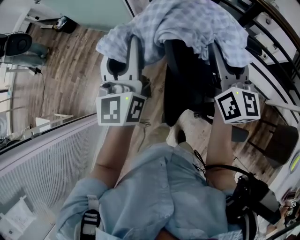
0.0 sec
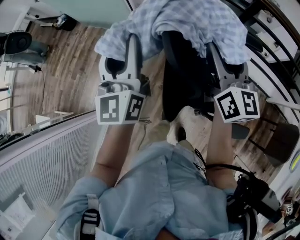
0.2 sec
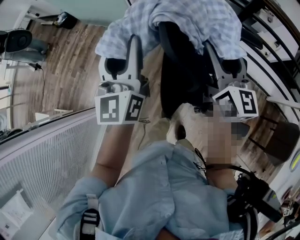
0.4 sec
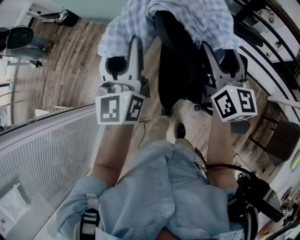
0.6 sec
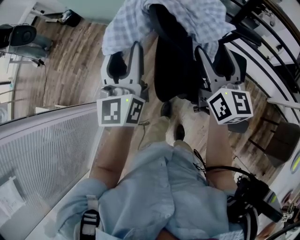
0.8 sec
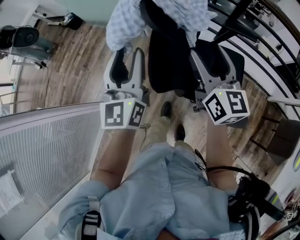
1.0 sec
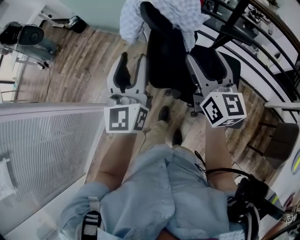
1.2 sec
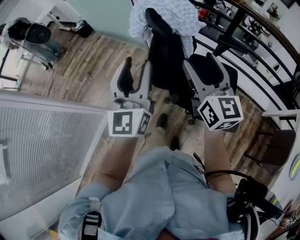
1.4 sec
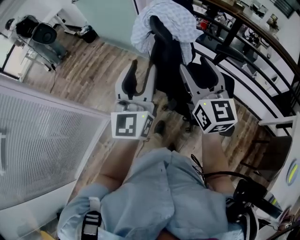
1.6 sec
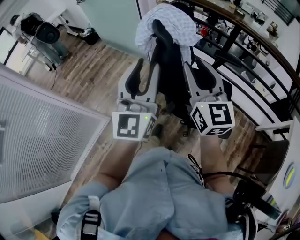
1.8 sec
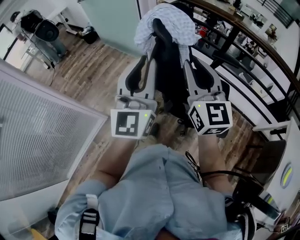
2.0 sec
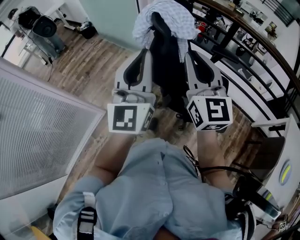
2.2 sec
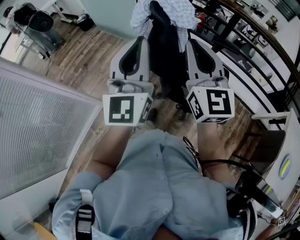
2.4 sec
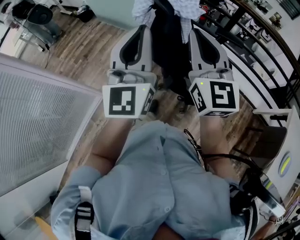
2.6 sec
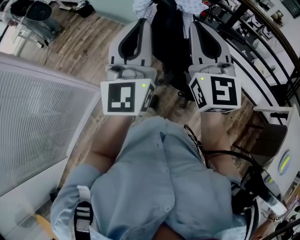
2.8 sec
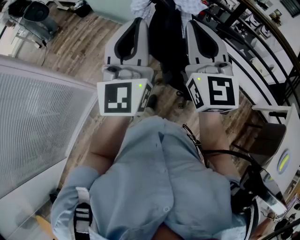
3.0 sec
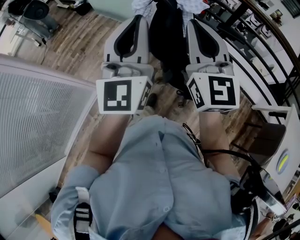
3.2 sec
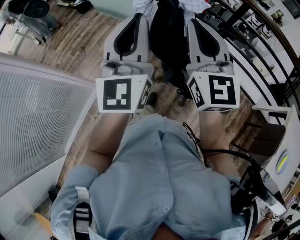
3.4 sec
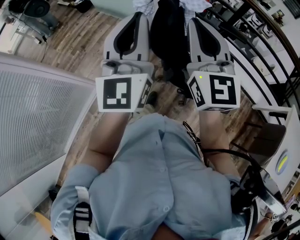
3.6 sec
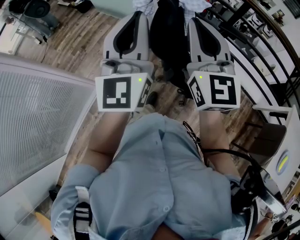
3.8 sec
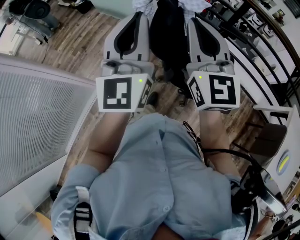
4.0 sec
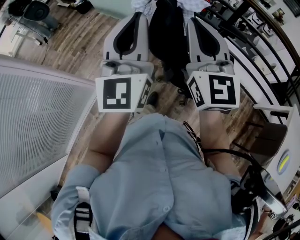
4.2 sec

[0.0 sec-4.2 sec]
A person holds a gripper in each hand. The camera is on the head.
0.0 sec to 1.4 sec: Both grippers move backward, approximately 20 cm.
1.4 sec to 2.8 sec: Both grippers move upward and backward, roughly 10 cm. The right gripper closes its fingers, while the left gripper closes.
2.8 sec to 4.2 sec: The grippers move only a little.

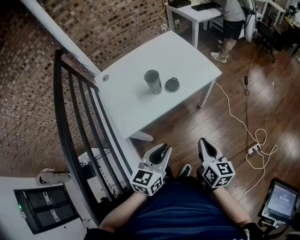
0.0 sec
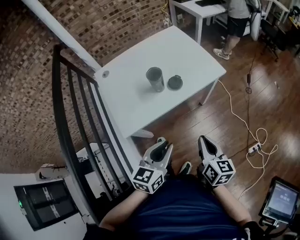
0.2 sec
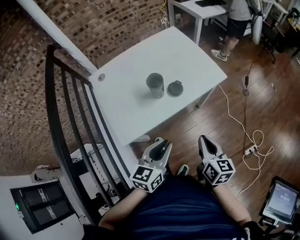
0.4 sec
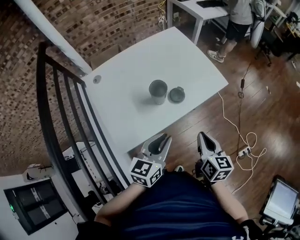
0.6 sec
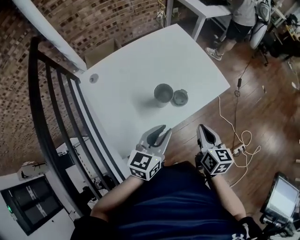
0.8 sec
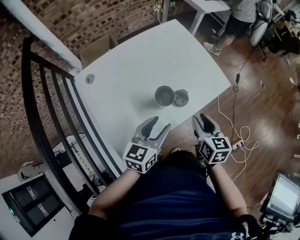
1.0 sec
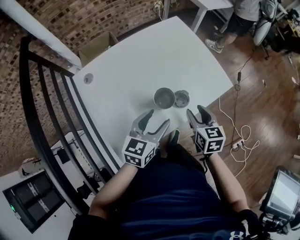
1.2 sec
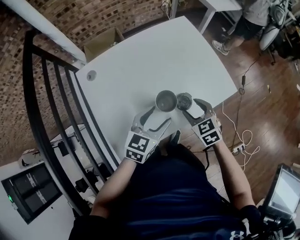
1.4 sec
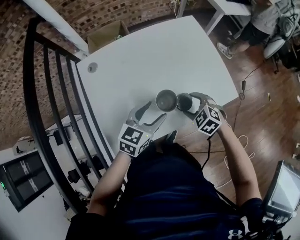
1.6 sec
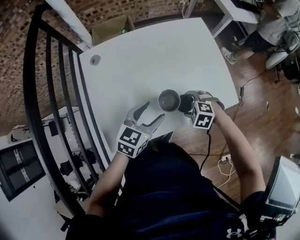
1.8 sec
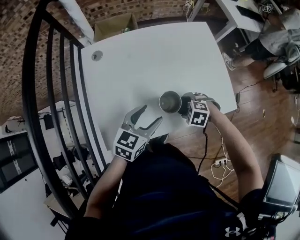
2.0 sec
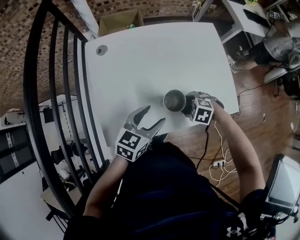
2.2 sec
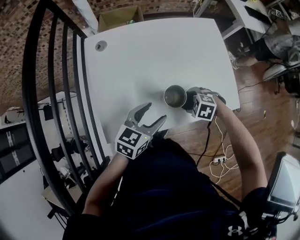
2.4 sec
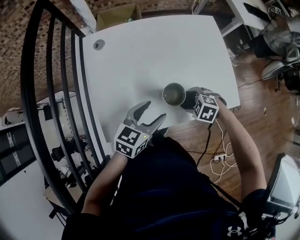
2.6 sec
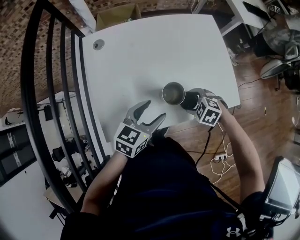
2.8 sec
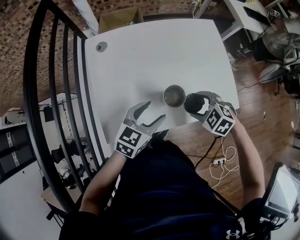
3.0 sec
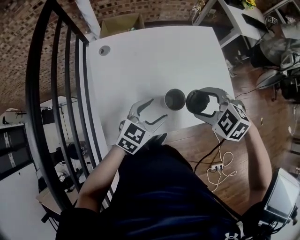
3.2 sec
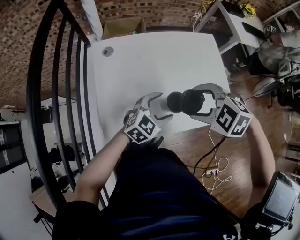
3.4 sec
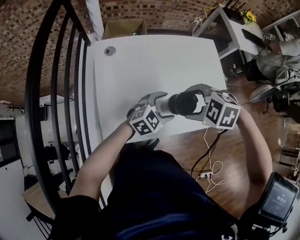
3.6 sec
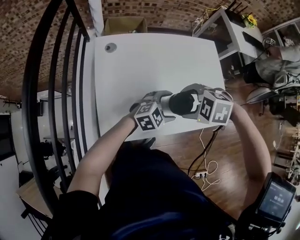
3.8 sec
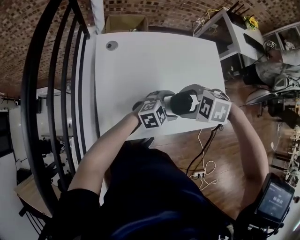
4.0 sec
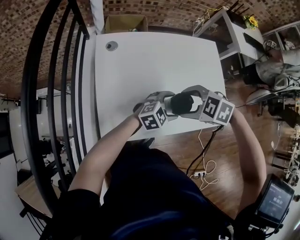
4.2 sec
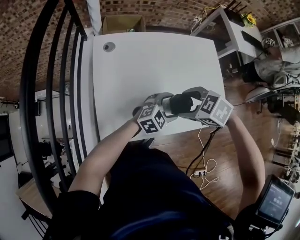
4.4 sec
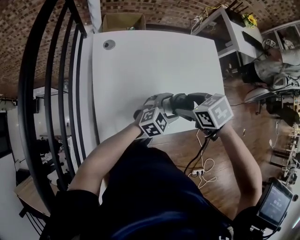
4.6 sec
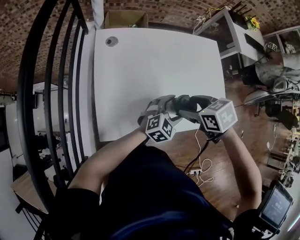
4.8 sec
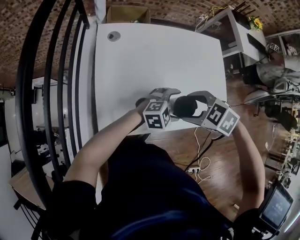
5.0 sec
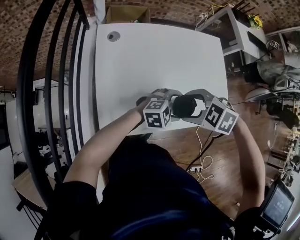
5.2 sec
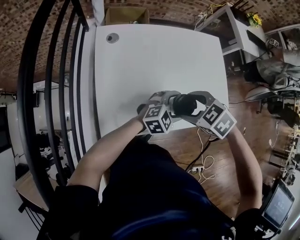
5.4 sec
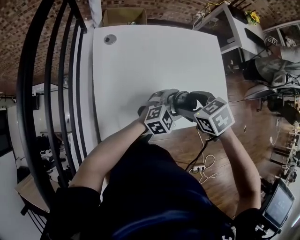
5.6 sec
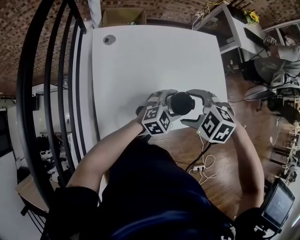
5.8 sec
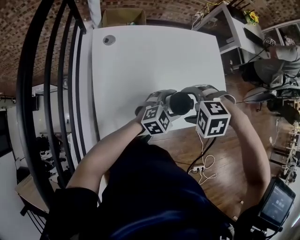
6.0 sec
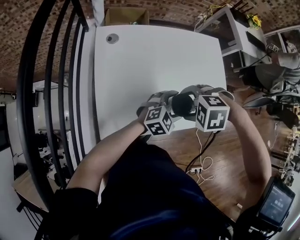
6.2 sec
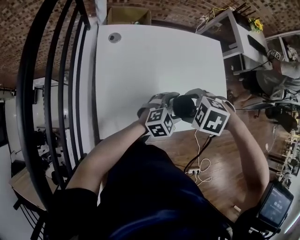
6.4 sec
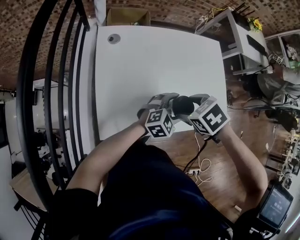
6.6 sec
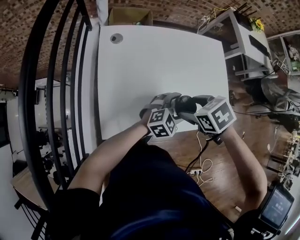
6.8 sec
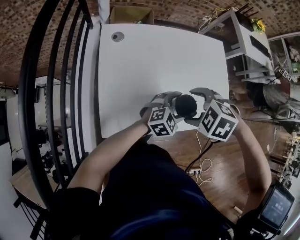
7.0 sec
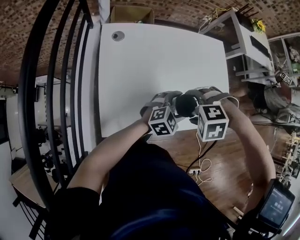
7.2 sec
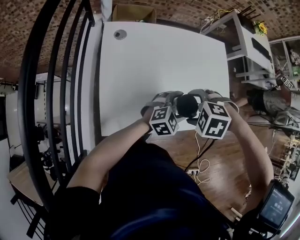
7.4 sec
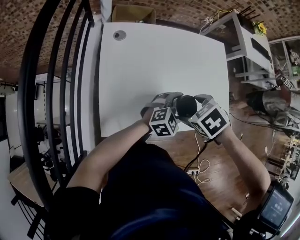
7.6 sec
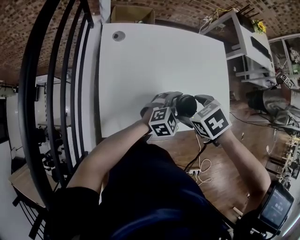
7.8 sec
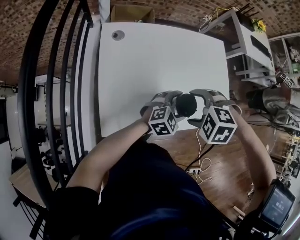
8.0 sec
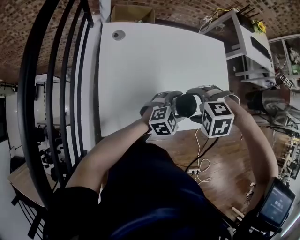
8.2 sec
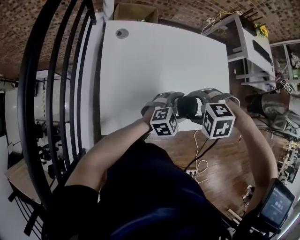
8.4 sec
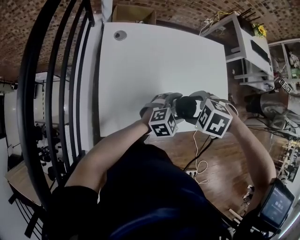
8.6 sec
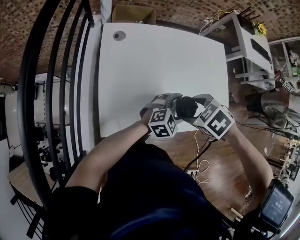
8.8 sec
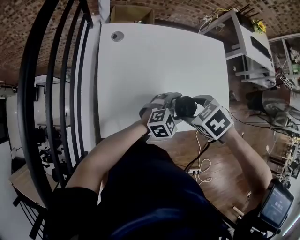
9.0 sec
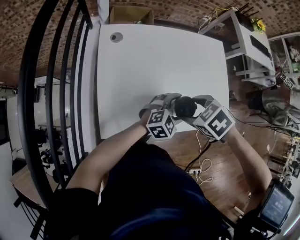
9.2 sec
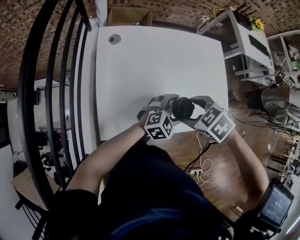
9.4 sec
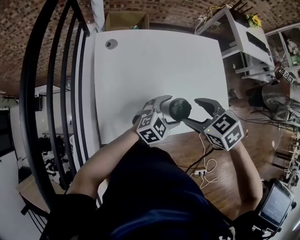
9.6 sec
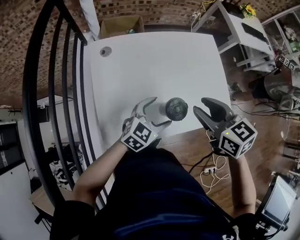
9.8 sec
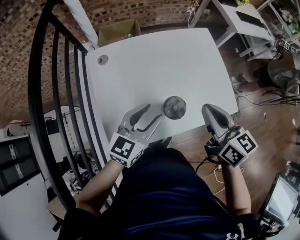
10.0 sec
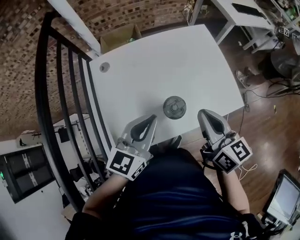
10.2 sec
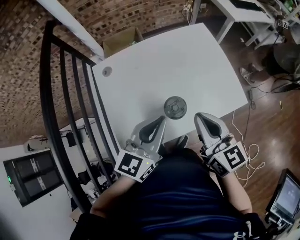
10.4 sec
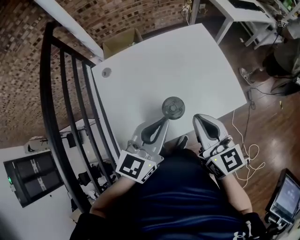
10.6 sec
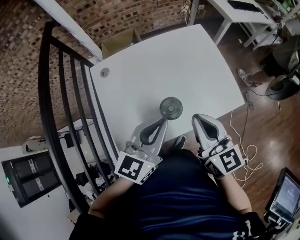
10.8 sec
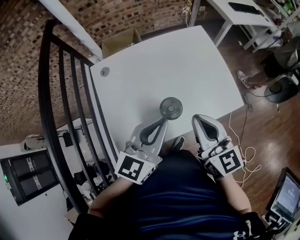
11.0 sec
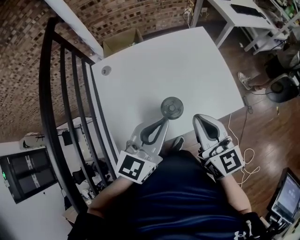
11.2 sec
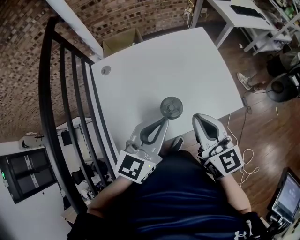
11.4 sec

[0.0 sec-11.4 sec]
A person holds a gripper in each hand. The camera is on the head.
0.0 sec to 1.4 sec: The grippers both shift forward and to the left by some 35 cm. The left gripper opens its fingers; the right gripper twists roughly 50 degrees counterclockwise, seen from behind, and opens its fingers.
1.4 sec to 2.8 sec: The right gripper moves downward, some 10 cm, and swivels roughly 60 degrees.
2.8 sec to 4.2 sec: The right gripper travels upward by roughly 15 cm. Meanwhile the left gripper moves about 10 cm, and swivels roughly 40 degrees.
4.2 sec to 5.6 sec: The right gripper swivels some 40 degrees.
5.6 sec to 7.2 sec: The right gripper rotates around the line of its fingers by approximately 60 degrees, counterclockwise from behind.
7.2 sec to 8.6 sec: The right gripper rotates some 20 degrees.
8.6 sec to 10.0 sec: The right gripper goes about 10 cm upward, tilts its fingers some 70 degrees upward, and closes up, while the left gripper ends up approximately 15 cm from where it was, turns by some 30 degrees, and closes its fingers.
10.0 sec to 11.4 sec: The left gripper goes about 5 cm upward, and closes.

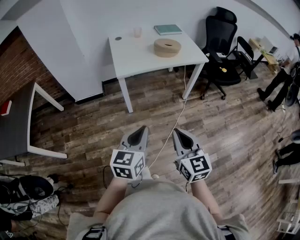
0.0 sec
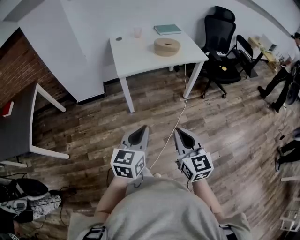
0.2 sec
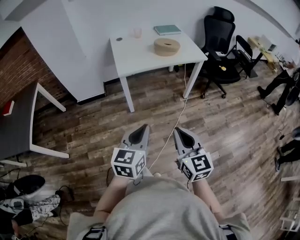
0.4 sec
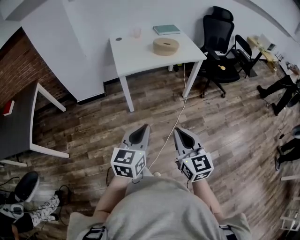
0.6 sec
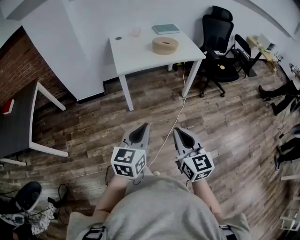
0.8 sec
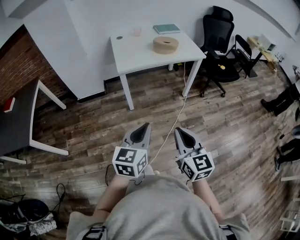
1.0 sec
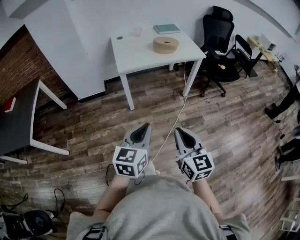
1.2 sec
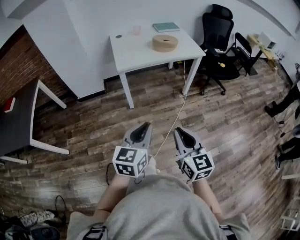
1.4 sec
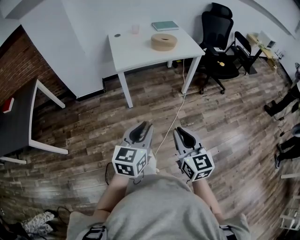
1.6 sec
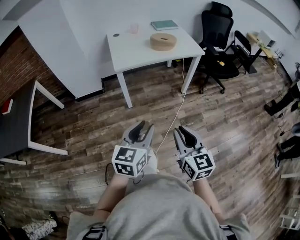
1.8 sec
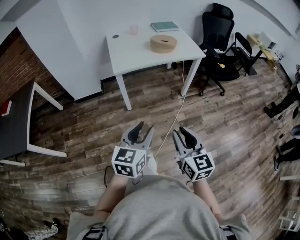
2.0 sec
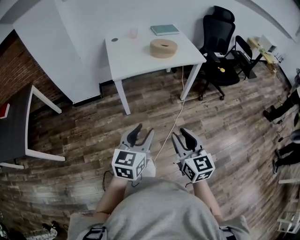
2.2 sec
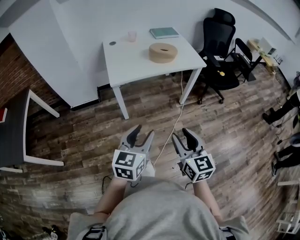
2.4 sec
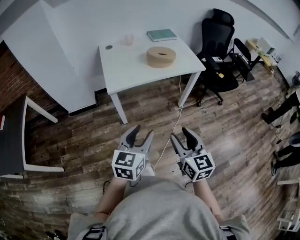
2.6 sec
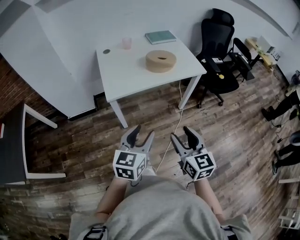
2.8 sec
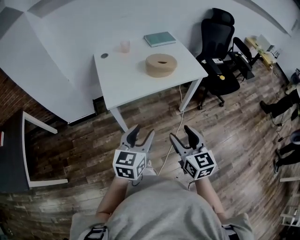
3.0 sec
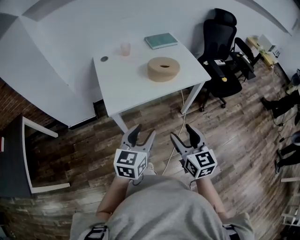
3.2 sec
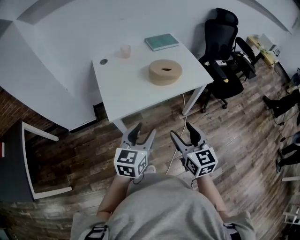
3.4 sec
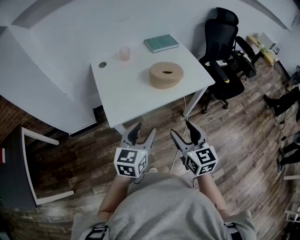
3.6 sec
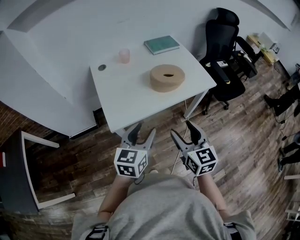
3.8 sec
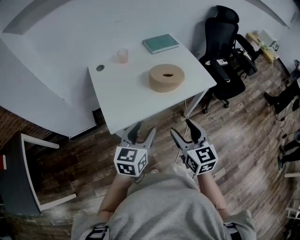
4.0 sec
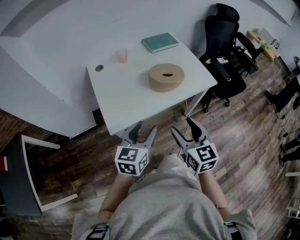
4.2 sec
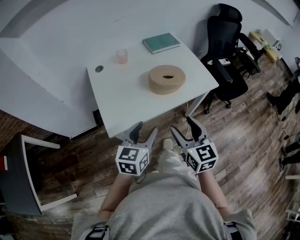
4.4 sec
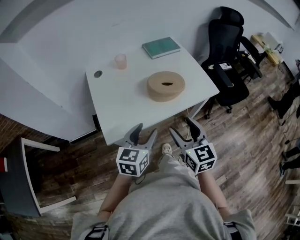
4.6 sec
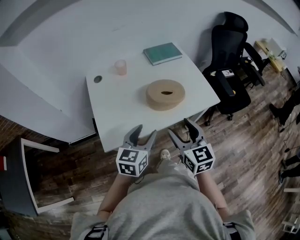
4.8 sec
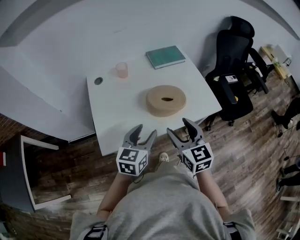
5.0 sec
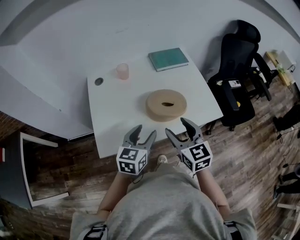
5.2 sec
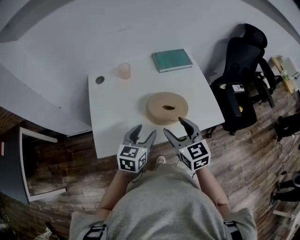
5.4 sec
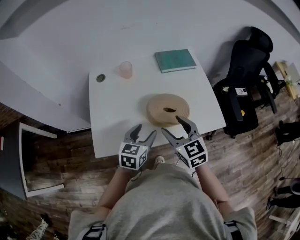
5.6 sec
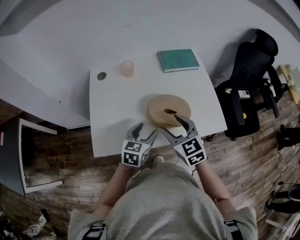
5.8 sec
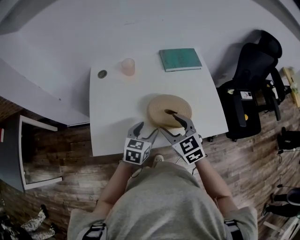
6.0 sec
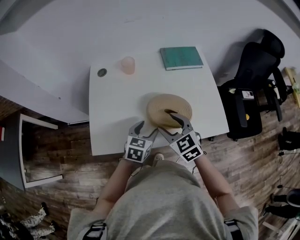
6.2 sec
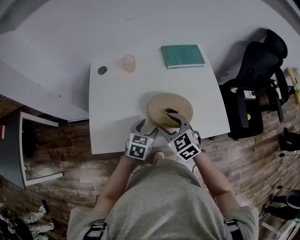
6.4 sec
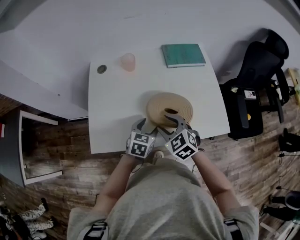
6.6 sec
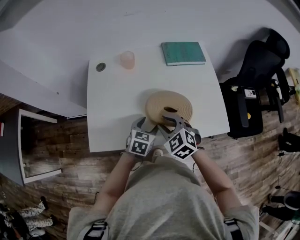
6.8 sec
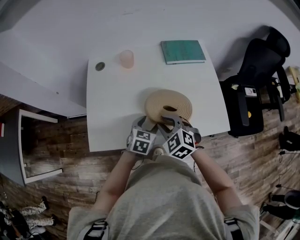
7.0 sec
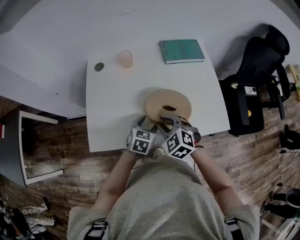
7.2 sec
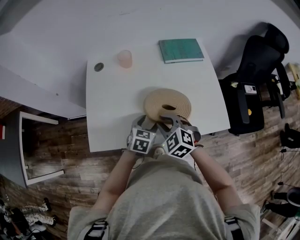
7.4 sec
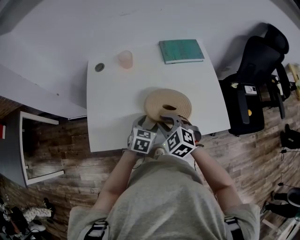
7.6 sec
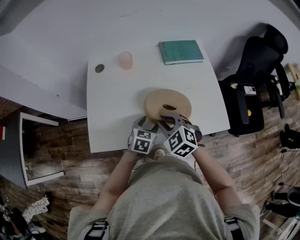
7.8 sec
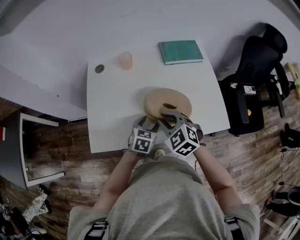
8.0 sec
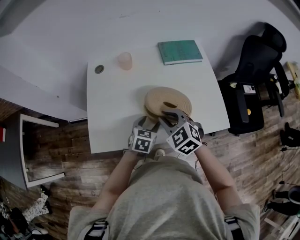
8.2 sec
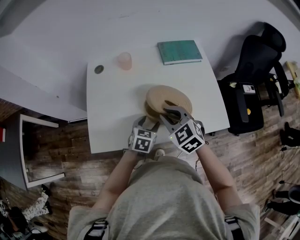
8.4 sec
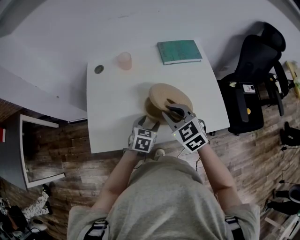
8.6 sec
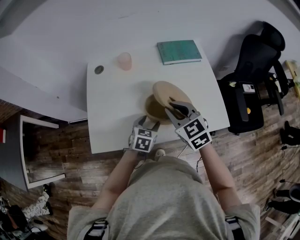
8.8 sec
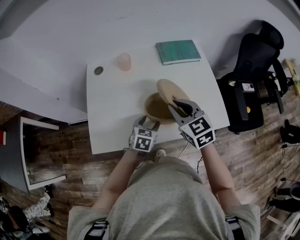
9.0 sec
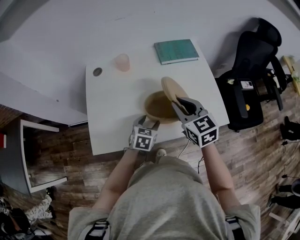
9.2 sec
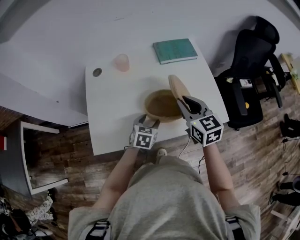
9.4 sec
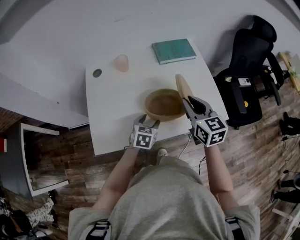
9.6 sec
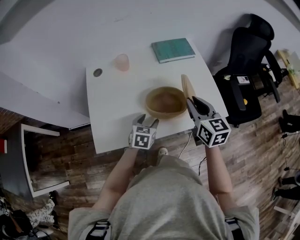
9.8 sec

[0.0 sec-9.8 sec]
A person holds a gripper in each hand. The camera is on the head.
0.0 sec to 1.4 sec: The two grippers go roughly 5 cm backward.
1.4 sec to 2.8 sec: The grippers both shift forward by some 25 cm. The right gripper opens up. The left gripper opens.
2.8 sec to 4.2 sec: The two grippers go about 25 cm forward.
4.2 sec to 5.6 sec: The grippers both shift forward by roughly 25 cm. The right gripper swivels about 30 degrees.
5.6 sec to 7.0 sec: The right gripper heads downward, covering roughly 10 cm, swivels roughly 30 degrees, and closes its fingers, while the left gripper moves downward and forward, roughly 15 cm.
7.0 sec to 8.4 sec: The right gripper is displaced upward by roughly 5 cm.
8.4 sec to 9.8 sec: The right gripper goes about 15 cm to the right and upward, and changes its angle by about 40 degrees.
